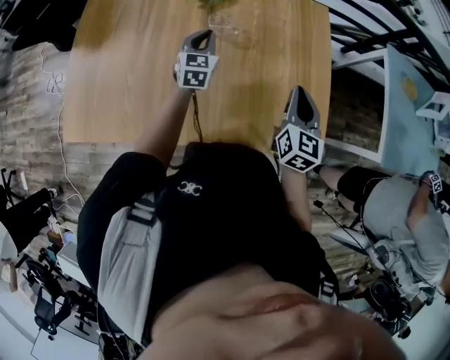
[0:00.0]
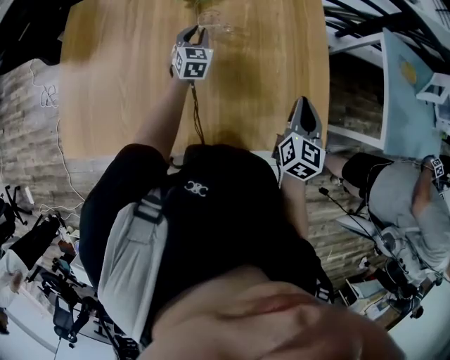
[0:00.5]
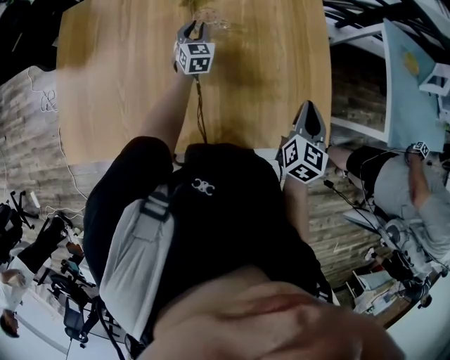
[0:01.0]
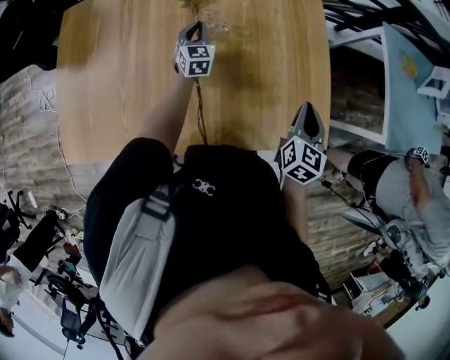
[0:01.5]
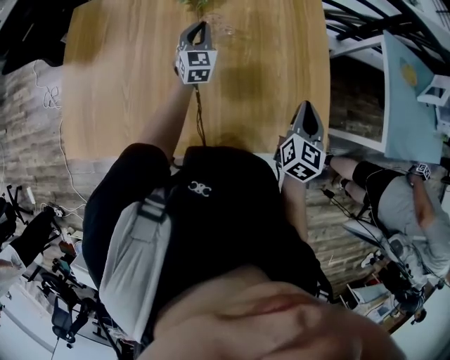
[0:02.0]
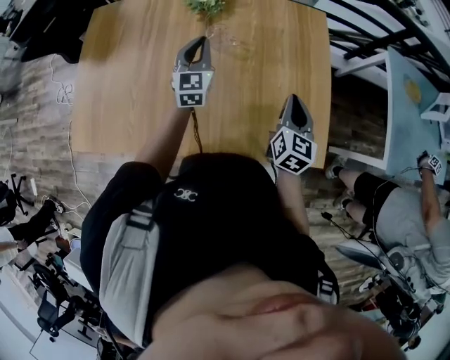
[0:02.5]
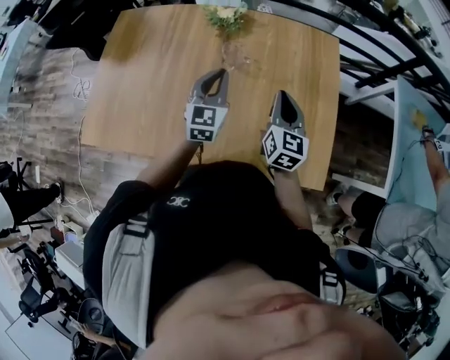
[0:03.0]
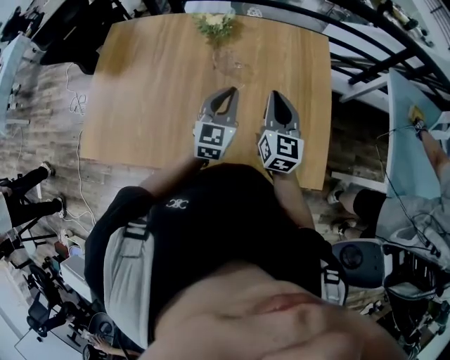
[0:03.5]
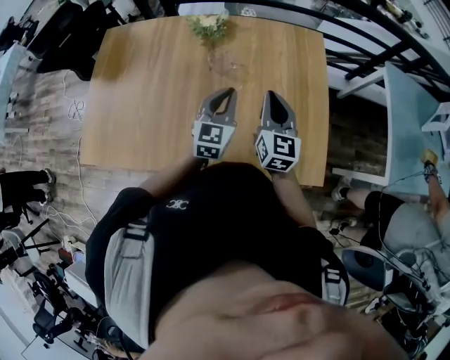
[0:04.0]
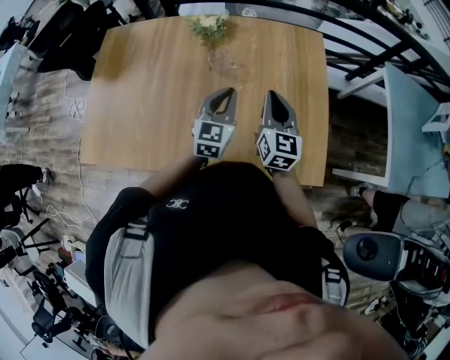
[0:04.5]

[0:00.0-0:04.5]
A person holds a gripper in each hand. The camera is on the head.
0:00.0 to 0:02.0: The right gripper changes place by approximately 5 cm. Meanwhile the left gripper moves forward, roughly 5 cm, and travels downward and back again, roughly 10 cm each way.
0:02.0 to 0:04.5: The right gripper is displaced to the left and forward by some 10 cm, and swivels approximately 30 degrees; the left gripper is displaced backward, to the right and upward by approximately 20 cm.

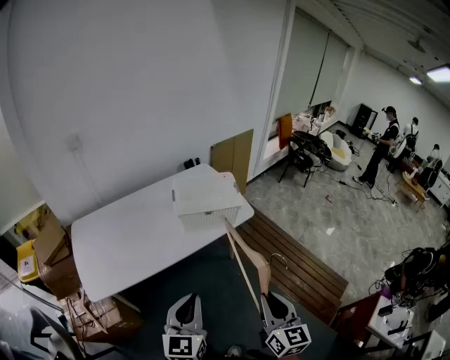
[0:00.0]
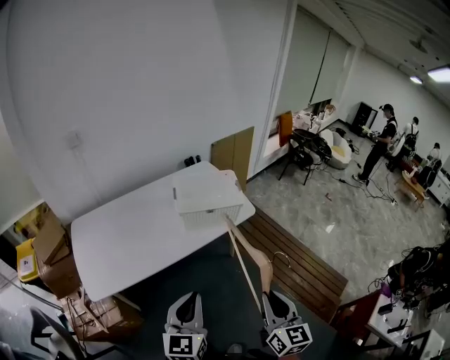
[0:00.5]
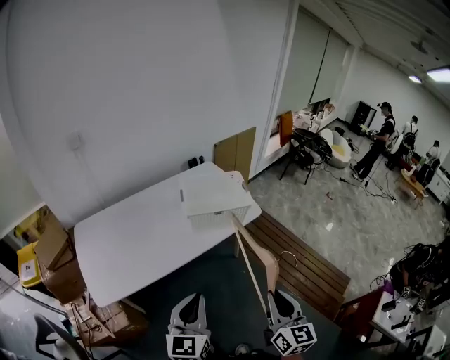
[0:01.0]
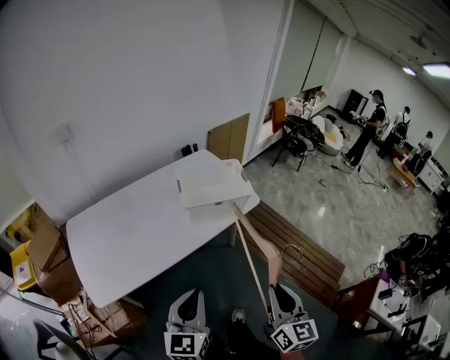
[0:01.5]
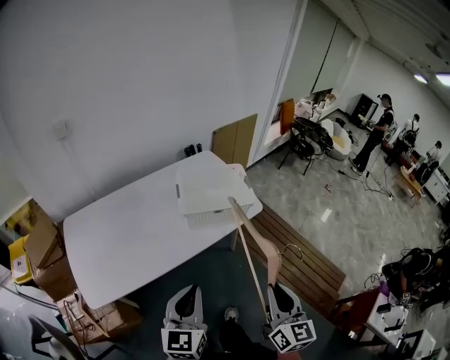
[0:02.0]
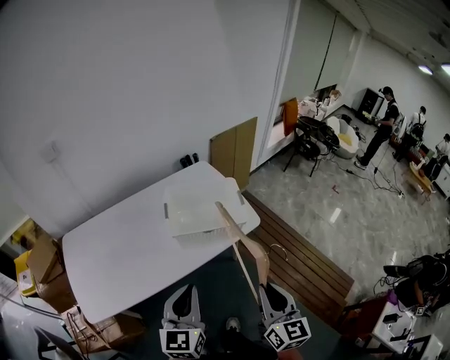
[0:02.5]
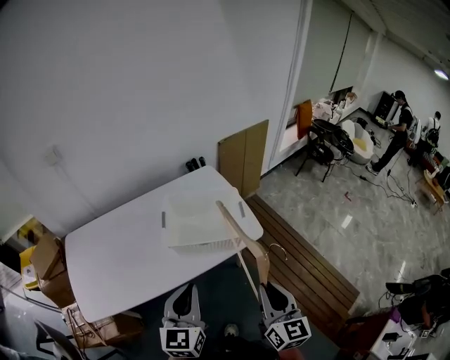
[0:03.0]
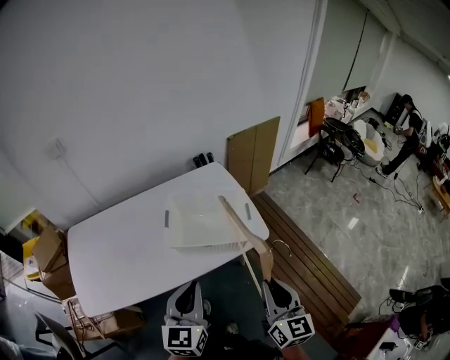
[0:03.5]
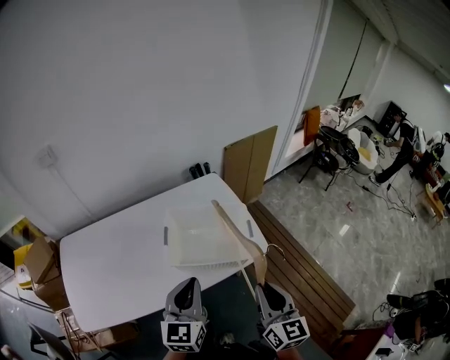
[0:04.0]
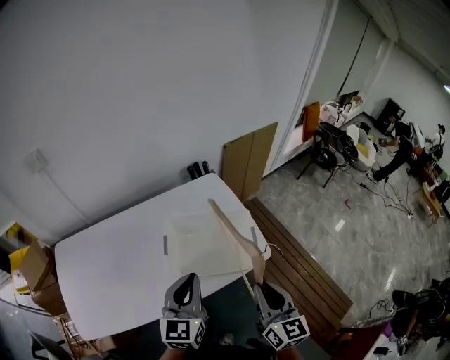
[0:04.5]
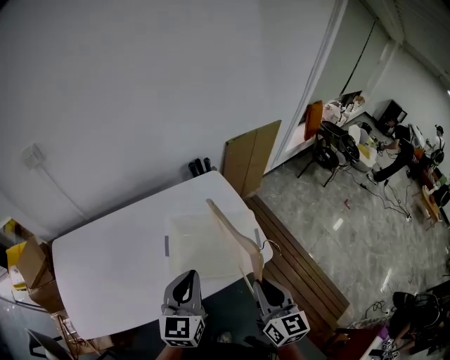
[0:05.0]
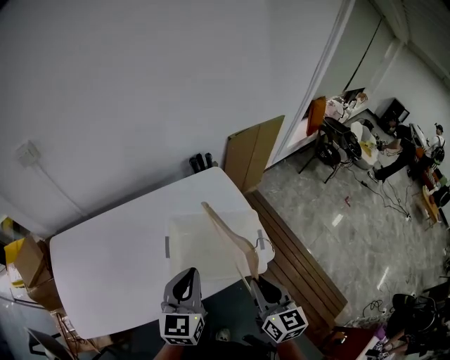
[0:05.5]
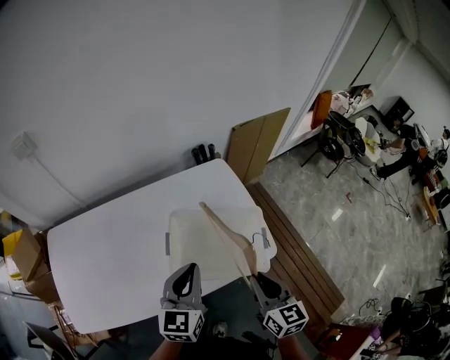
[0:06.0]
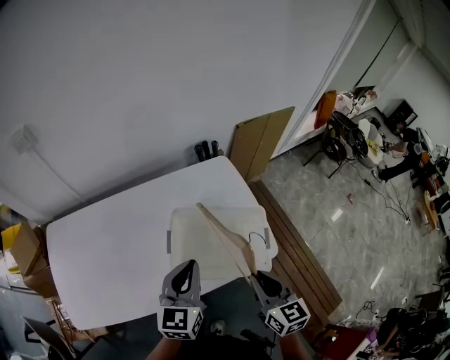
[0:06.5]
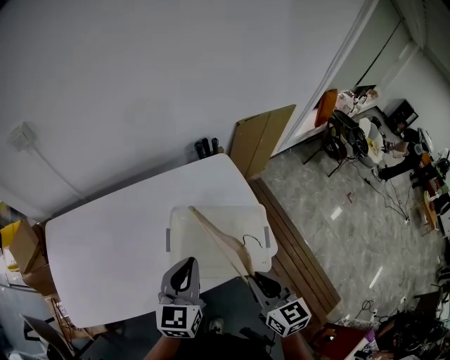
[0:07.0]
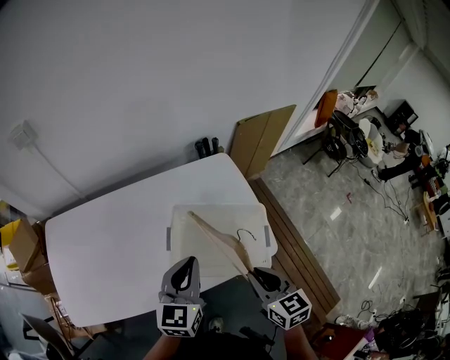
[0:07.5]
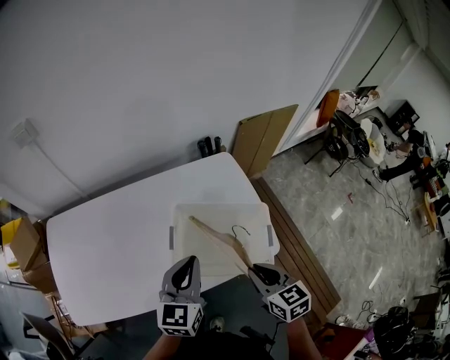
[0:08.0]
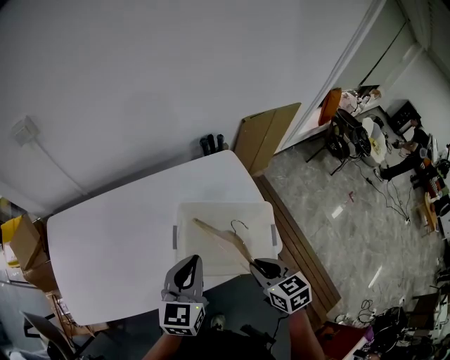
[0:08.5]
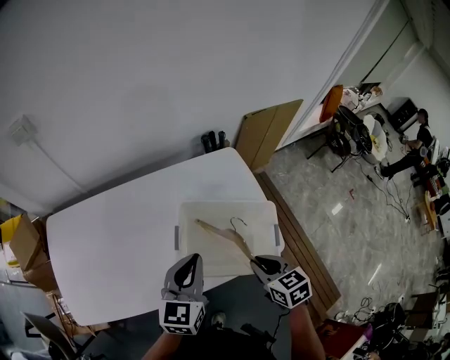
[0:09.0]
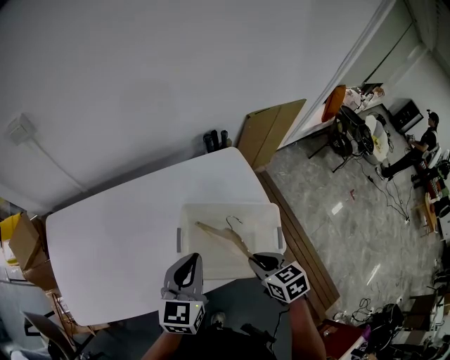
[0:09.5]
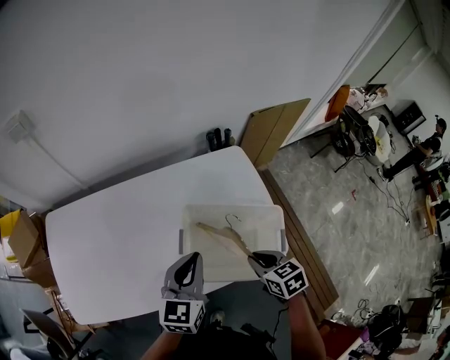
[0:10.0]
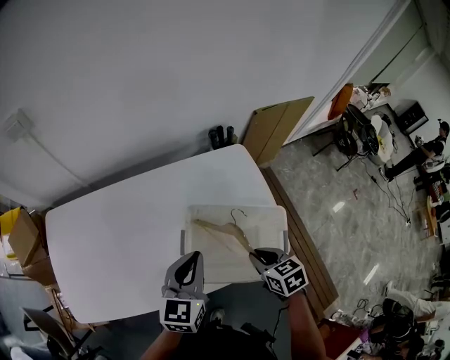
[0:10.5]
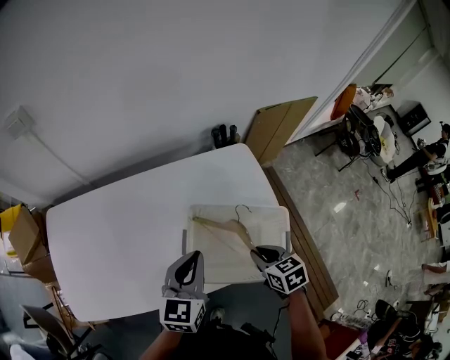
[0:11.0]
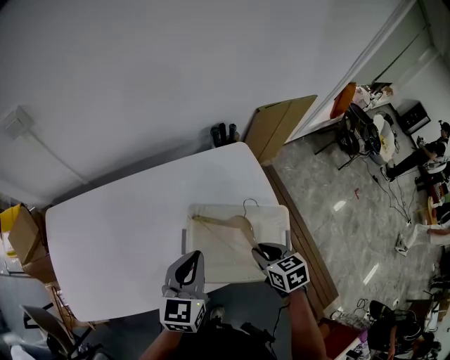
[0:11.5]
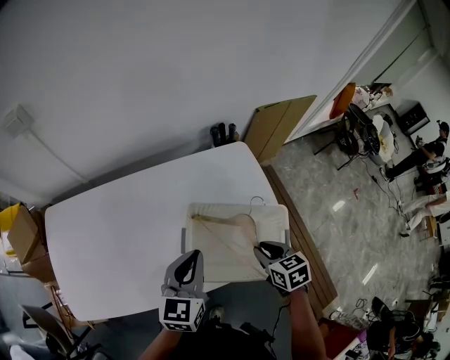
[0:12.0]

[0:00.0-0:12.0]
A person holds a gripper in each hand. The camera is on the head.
0:00.0 to 0:02.0: The right gripper travels forward by about 10 cm; the left gripper heads forward and to the left, covering approximately 10 cm.
0:02.0 to 0:04.0: Both grippers move forward, some 25 cm.
0:04.0 to 0:06.0: The right gripper is displaced forward and downward by some 15 cm; the left gripper heads forward, covering some 15 cm.
0:06.0 to 0:08.0: The right gripper changes its angle by some 20 degrees.
0:08.0 to 0:10.0: The right gripper moves downward and forward, about 10 cm, while the left gripper shifts by roughly 5 cm.
0:10.0 to 0:12.0: There are only small adjustments of the grippers.

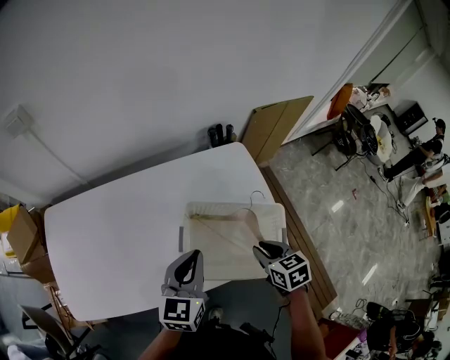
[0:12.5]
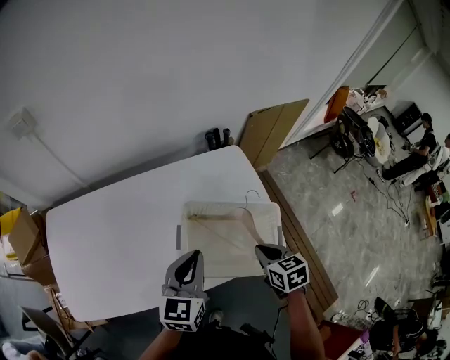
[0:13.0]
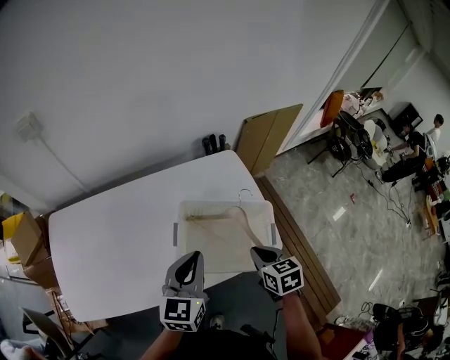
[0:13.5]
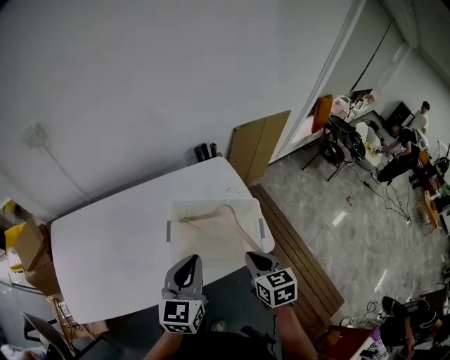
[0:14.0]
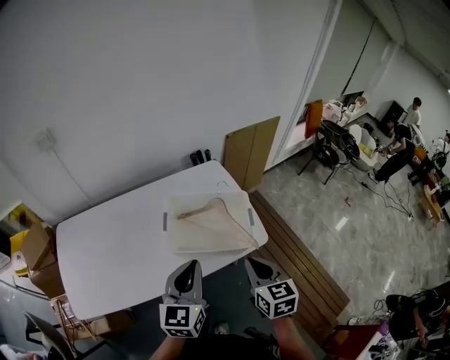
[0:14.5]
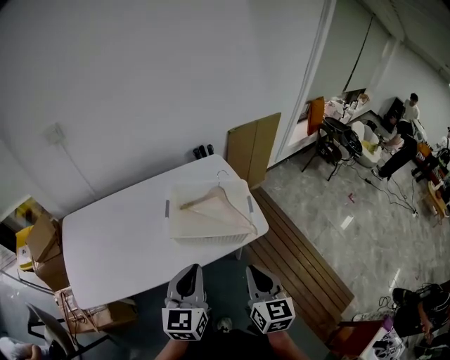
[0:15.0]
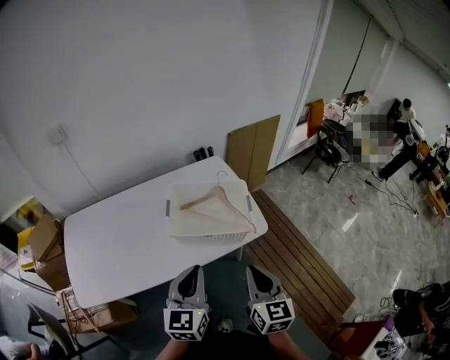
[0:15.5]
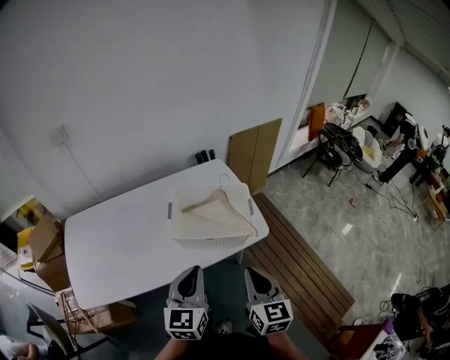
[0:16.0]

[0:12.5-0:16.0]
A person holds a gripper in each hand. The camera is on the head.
0:12.5 to 0:14.5: The two grippers go approximately 20 cm backward and upward. The right gripper turns by about 30 degrees.
0:14.5 to 0:16.0: The two grippers go approximately 10 cm backward.

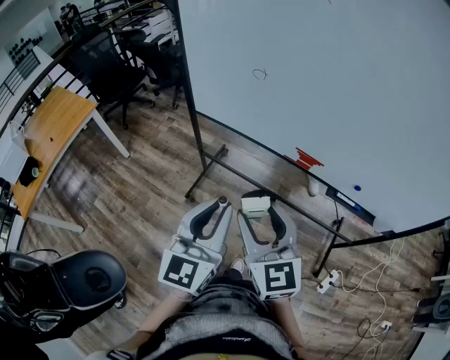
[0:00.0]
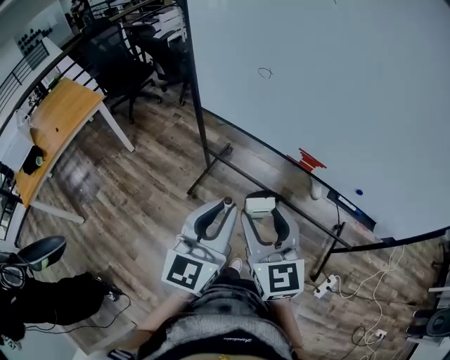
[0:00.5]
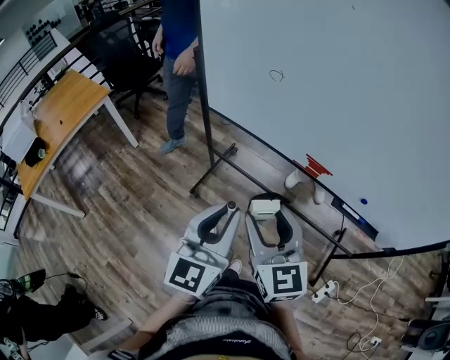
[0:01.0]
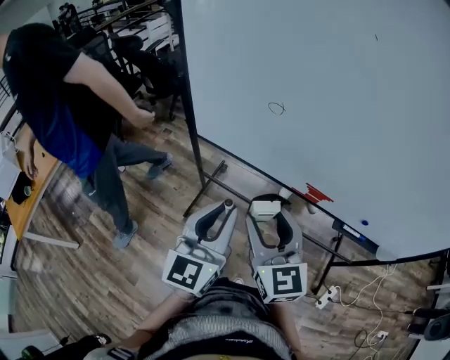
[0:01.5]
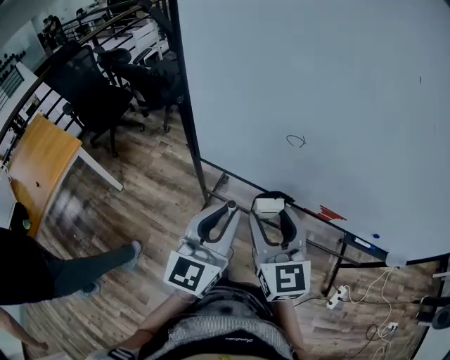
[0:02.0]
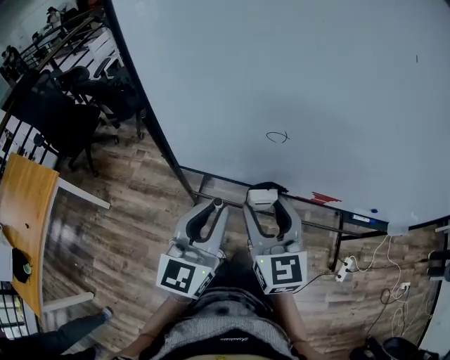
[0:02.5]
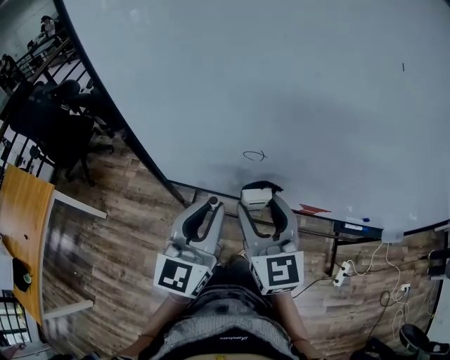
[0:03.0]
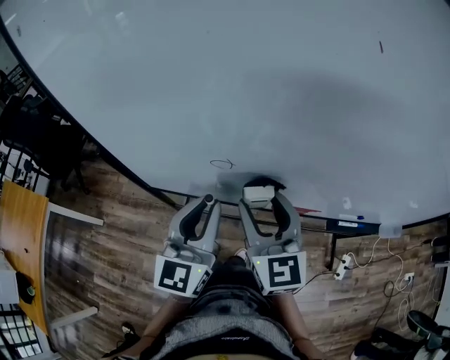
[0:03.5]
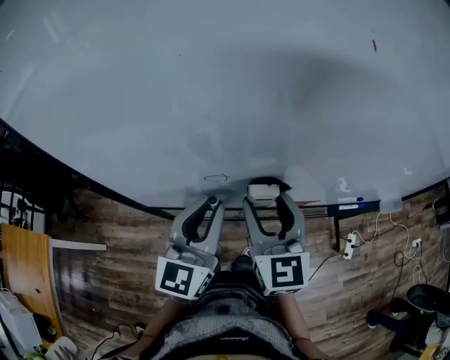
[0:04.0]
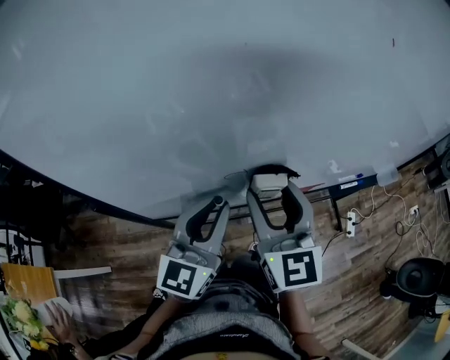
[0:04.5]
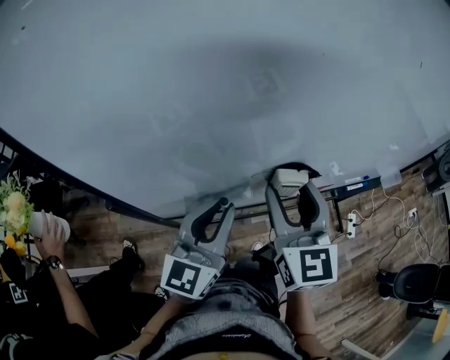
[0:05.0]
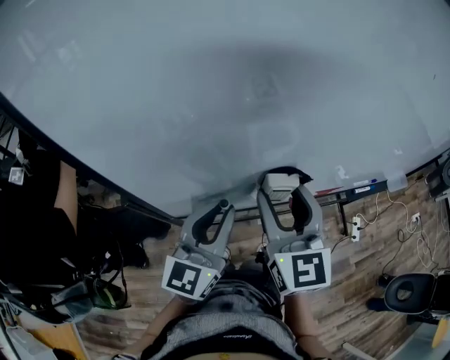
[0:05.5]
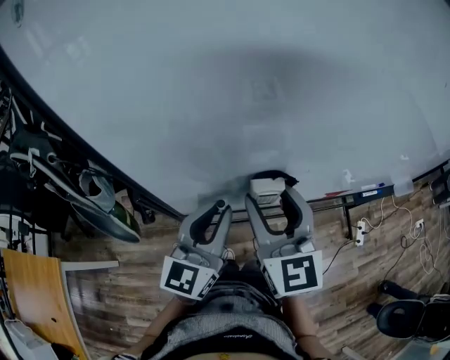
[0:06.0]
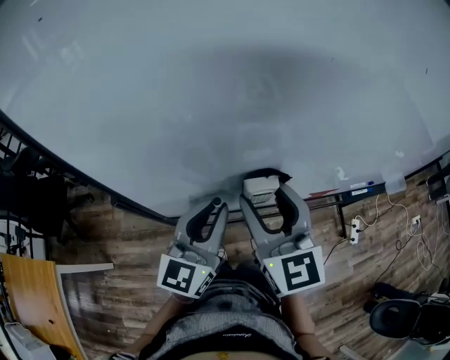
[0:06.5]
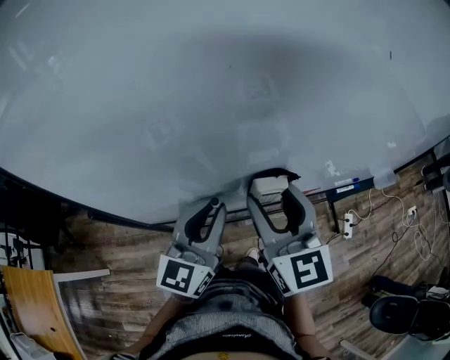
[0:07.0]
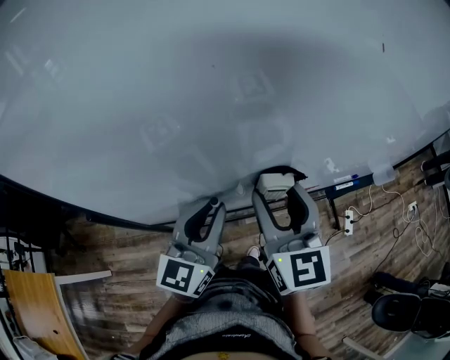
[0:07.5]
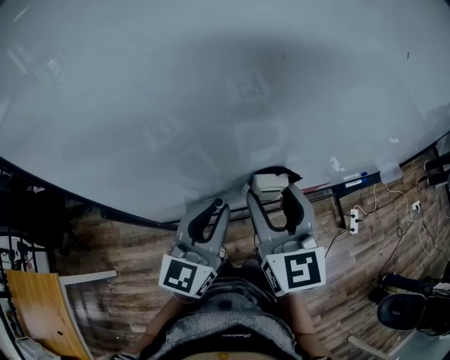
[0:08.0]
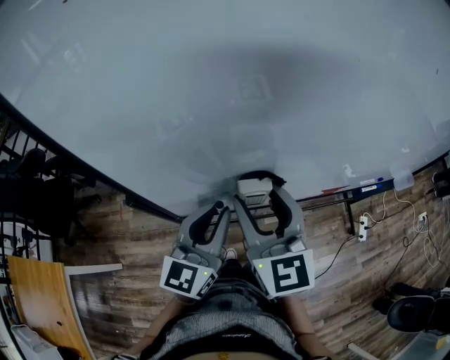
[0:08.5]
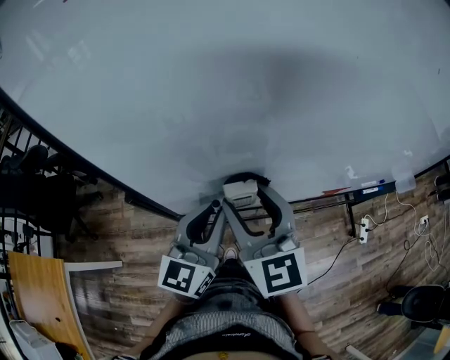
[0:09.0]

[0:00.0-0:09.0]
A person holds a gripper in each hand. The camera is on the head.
0:00.0 to 0:02.0: Both grippers move forward, some 25 cm.
0:02.0 to 0:04.5: The left gripper moves some 20 cm, and turns by some 30 degrees; the right gripper ends up some 15 cm from where it was, and rotates roughly 30 degrees.
0:04.5 to 0:07.0: The left gripper reaches some 15 cm to the left, then returns. Meanwhile the right gripper goes to the left and returns, about 15 cm each way.
0:07.0 to 0:09.0: Both grippers travel together to the left, approximately 15 cm.
